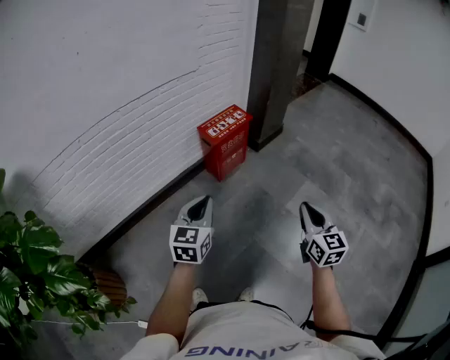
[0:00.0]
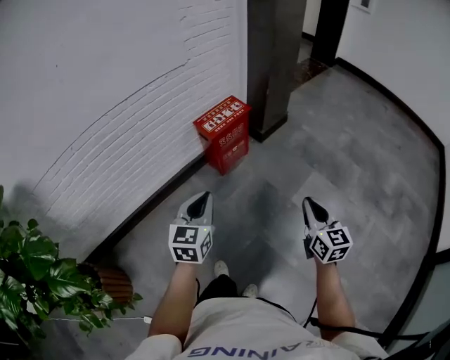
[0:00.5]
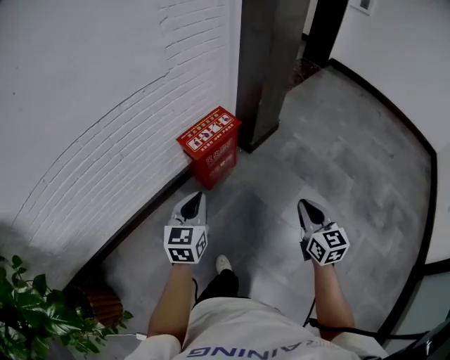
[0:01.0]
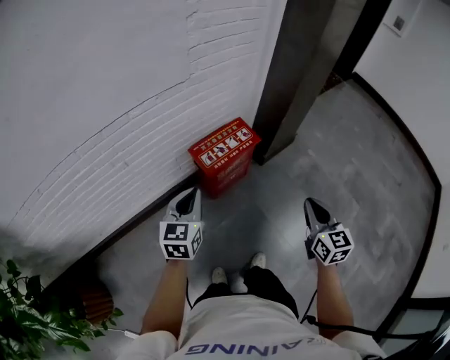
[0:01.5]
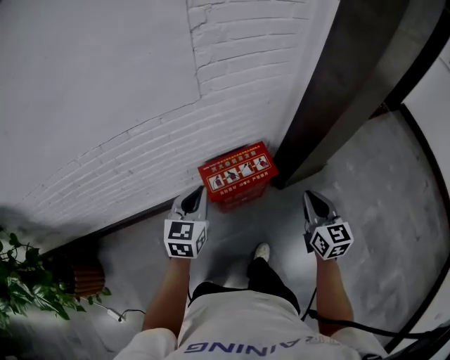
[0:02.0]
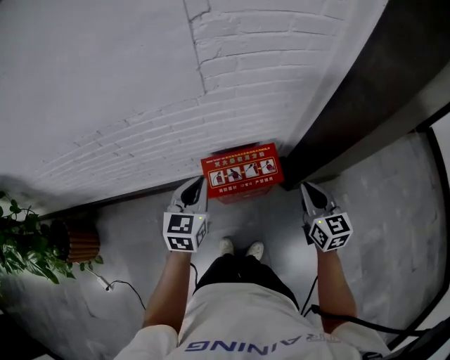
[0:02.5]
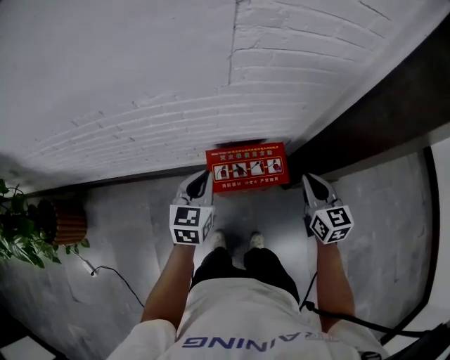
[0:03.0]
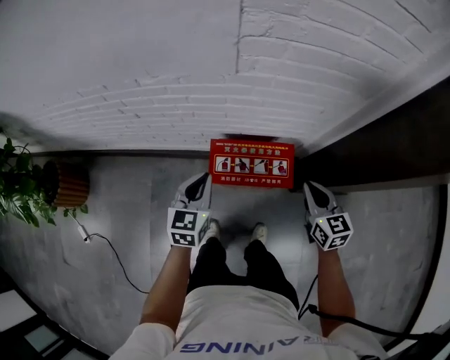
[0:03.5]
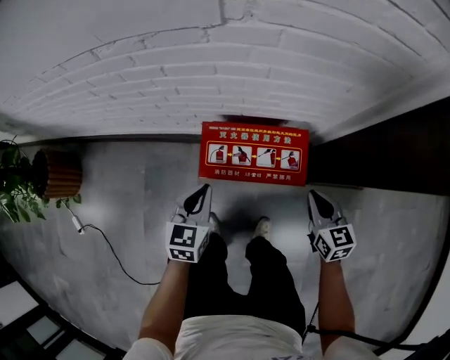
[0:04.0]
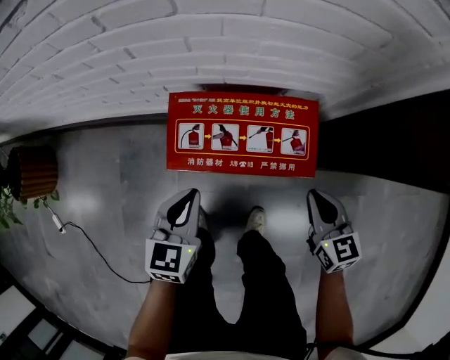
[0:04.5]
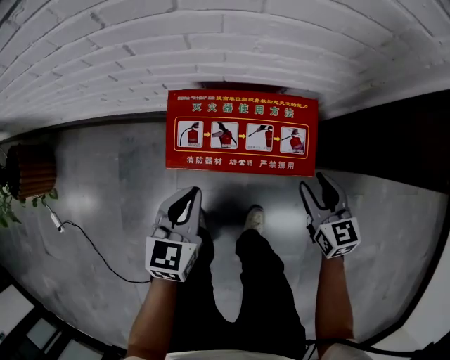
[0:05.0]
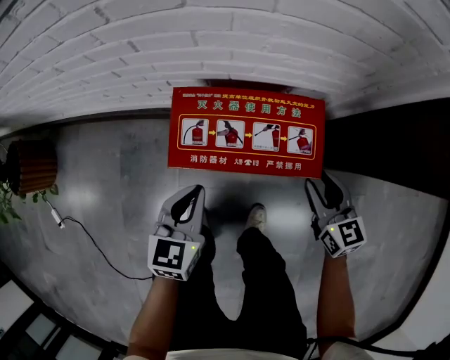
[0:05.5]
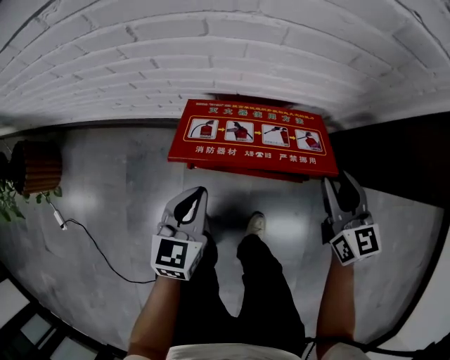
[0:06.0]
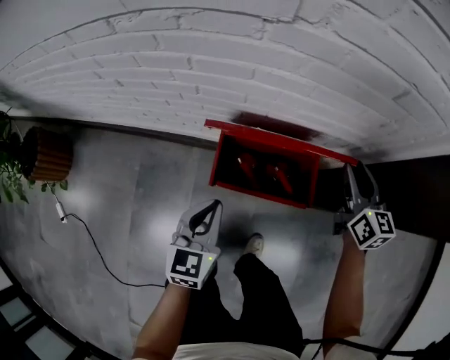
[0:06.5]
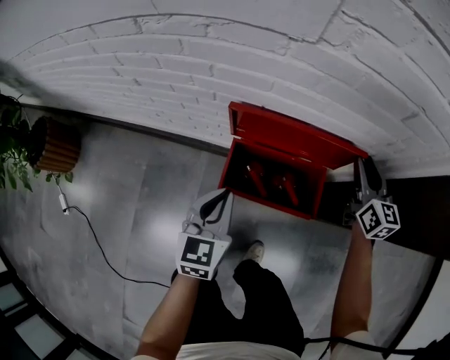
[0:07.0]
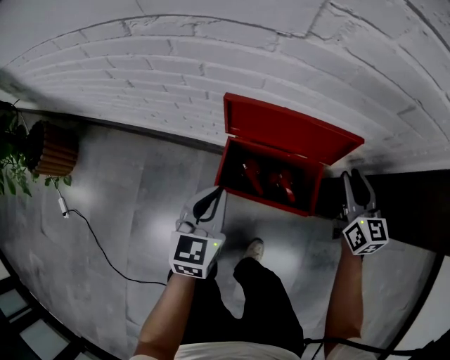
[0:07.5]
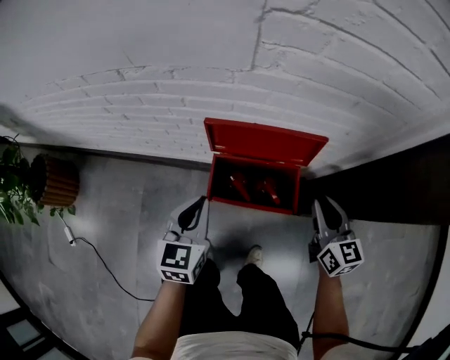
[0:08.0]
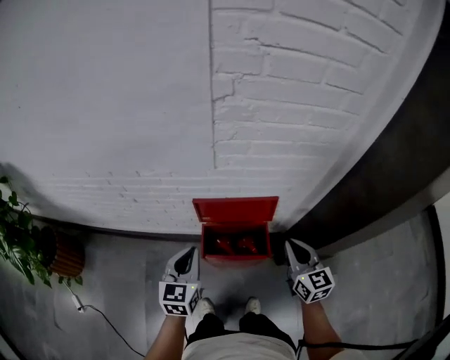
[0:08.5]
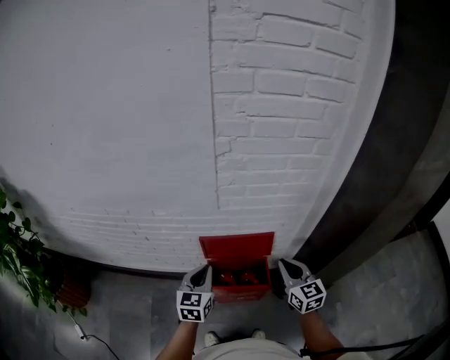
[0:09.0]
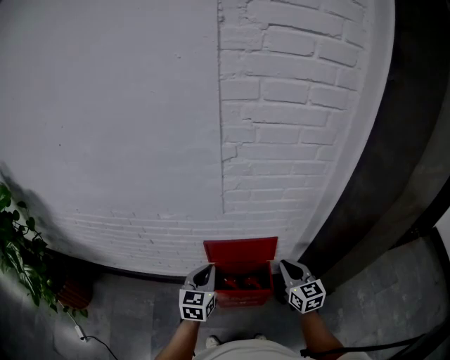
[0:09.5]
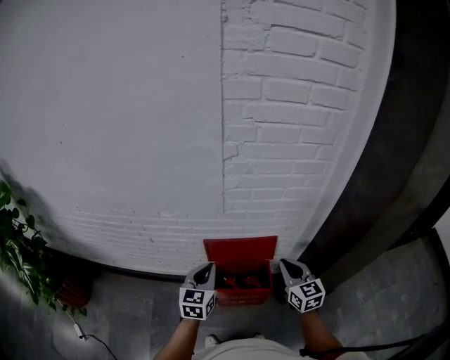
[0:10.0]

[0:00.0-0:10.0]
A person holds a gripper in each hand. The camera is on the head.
0:00.0 to 0:02.0: The two grippers travel together, forward, approximately 60 cm. The left gripper changes its angle by some 20 degrees, while the right gripper changes its angle by about 20 degrees.
0:02.0 to 0:04.0: Both grippers travel together downward, approximately 25 cm. The left gripper swivels approximately 30 degrees. Meanwhile the right gripper rotates roughly 30 degrees.
0:04.0 to 0:06.0: The right gripper goes downward and returns, roughly 10 cm each way, and opens. The left gripper moves downward, some 5 cm.
0:06.0 to 0:08.0: The grippers both shift upward by about 10 cm. The right gripper goes forward and returns, about 15 cm each way.
0:08.0 to 0:10.0: The two grippers go about 20 cm upward.

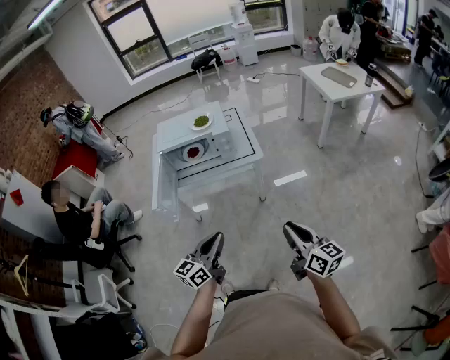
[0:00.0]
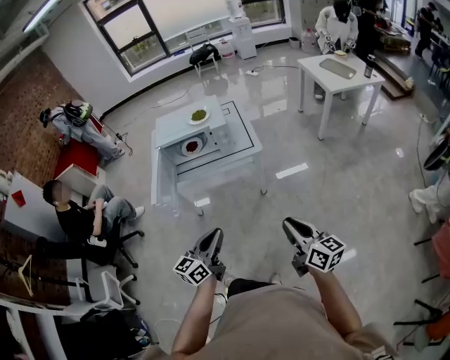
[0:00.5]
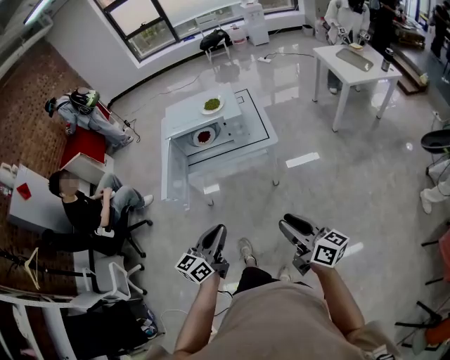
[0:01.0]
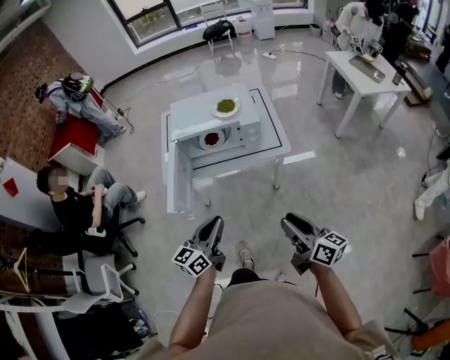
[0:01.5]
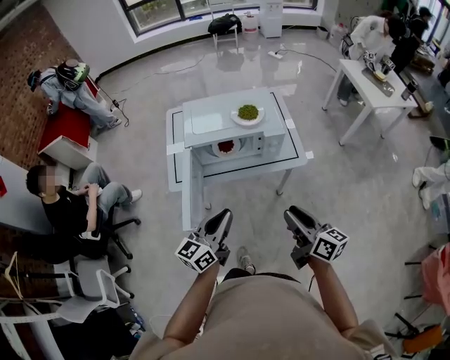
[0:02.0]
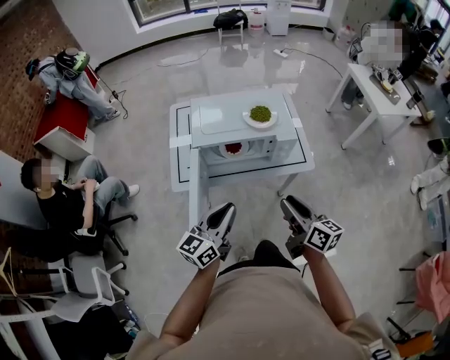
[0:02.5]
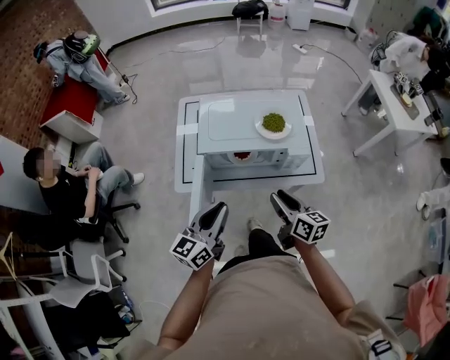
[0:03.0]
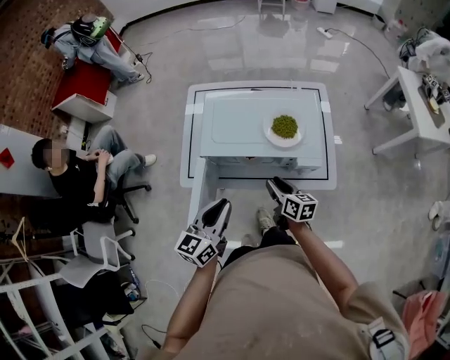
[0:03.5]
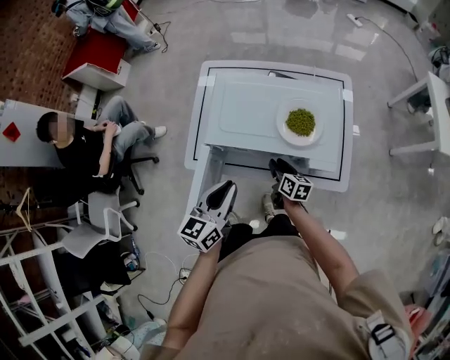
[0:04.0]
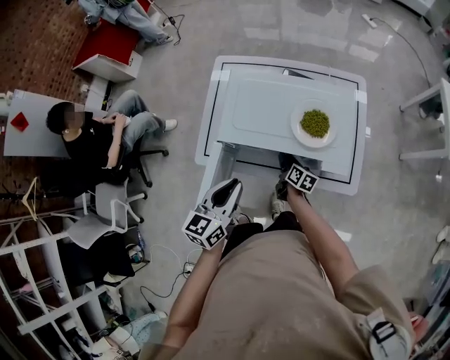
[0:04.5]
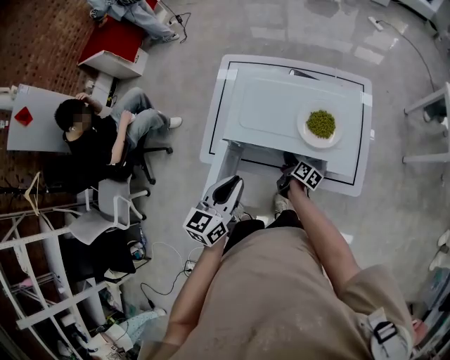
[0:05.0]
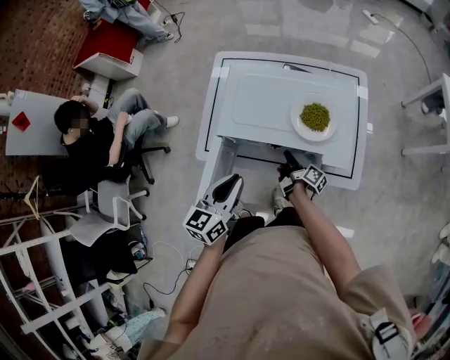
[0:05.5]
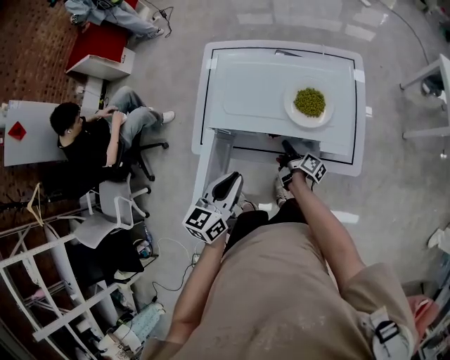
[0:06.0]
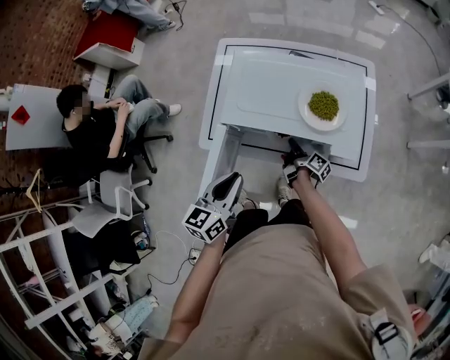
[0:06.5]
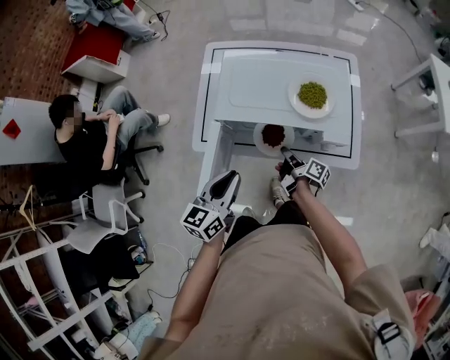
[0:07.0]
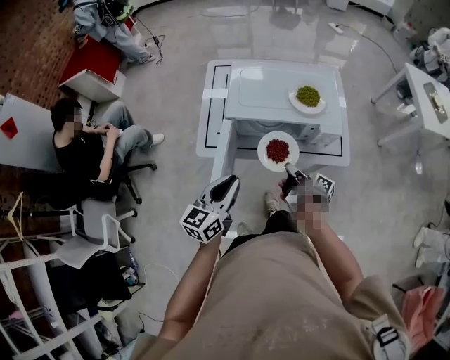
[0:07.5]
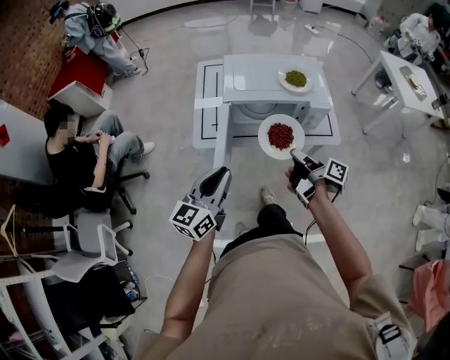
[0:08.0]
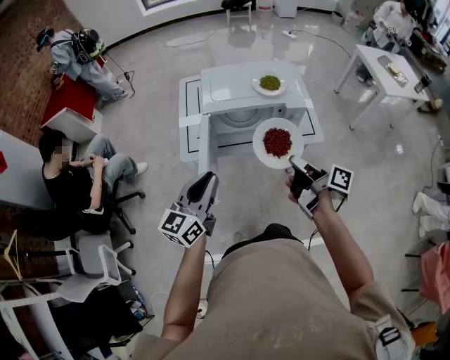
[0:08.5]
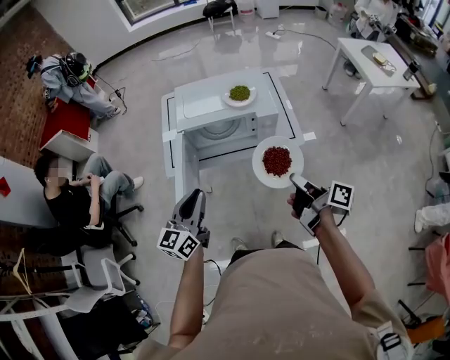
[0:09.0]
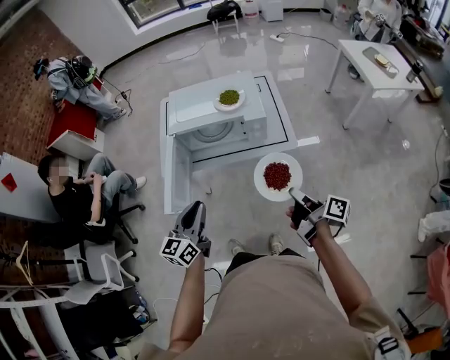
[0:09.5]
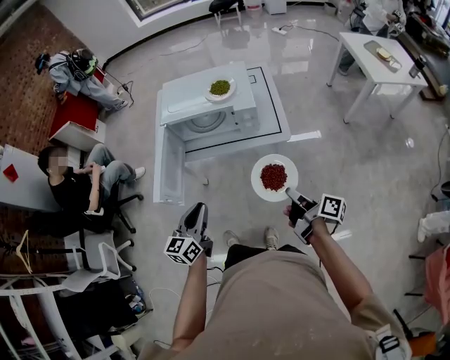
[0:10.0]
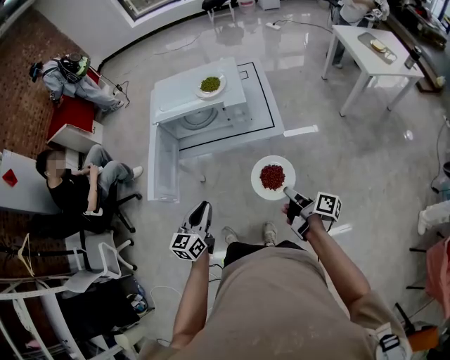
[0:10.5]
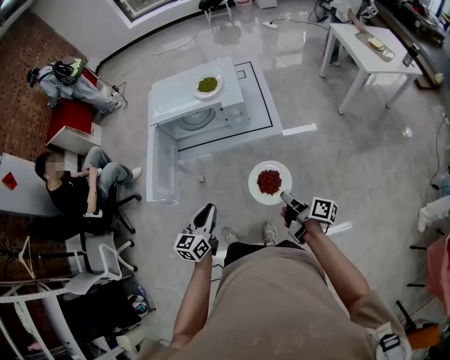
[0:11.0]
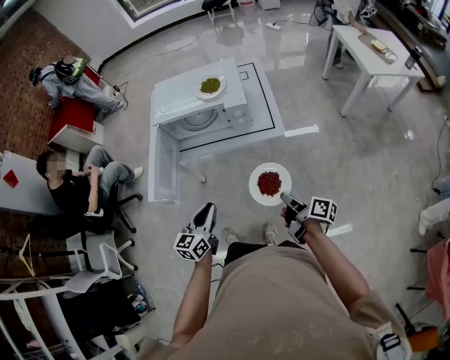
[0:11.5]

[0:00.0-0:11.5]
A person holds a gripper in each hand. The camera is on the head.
0:00.0 to 0:02.0: The grippers both shift forward and to the left by about 35 cm.
0:02.0 to 0:04.0: The left gripper heads forward, covering about 25 cm, and swivels some 30 degrees; the right gripper moves forward and downward, roughly 50 cm, and turns by some 20 degrees.
0:04.0 to 0:06.0: The right gripper changes its angle by about 40 degrees, and closes.
0:06.0 to 0:07.5: The left gripper shifts some 15 cm backward and to the left. Meanwhile the right gripper travels backward and upward by some 20 cm.
0:07.5 to 0:09.5: The right gripper moves to the right, backward and upward, approximately 35 cm. Meanwhile the left gripper shifts roughly 20 cm backward and to the right.
0:09.5 to 0:11.5: The right gripper shifts roughly 10 cm downward and backward; the left gripper shifts roughly 15 cm downward, to the right and backward.

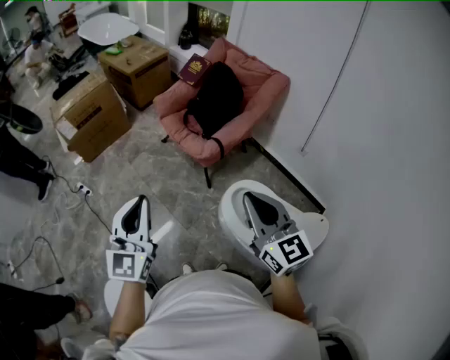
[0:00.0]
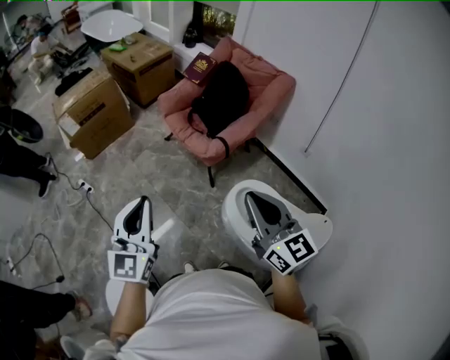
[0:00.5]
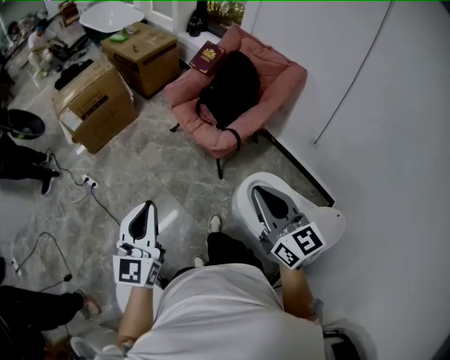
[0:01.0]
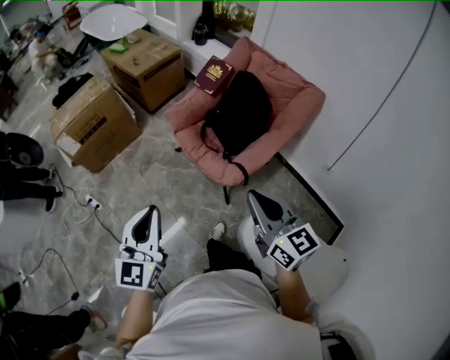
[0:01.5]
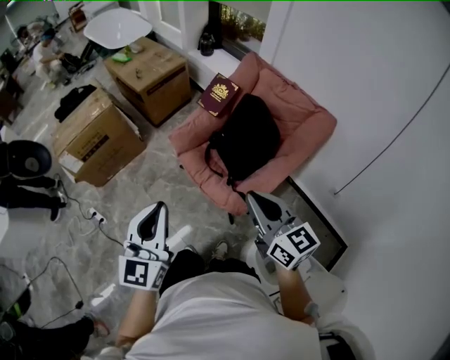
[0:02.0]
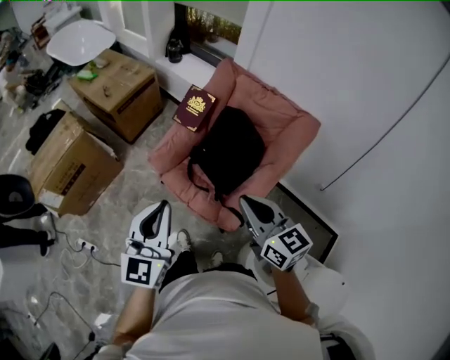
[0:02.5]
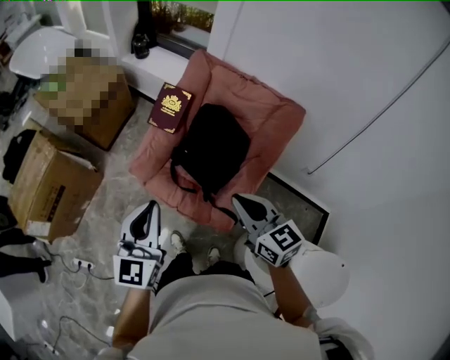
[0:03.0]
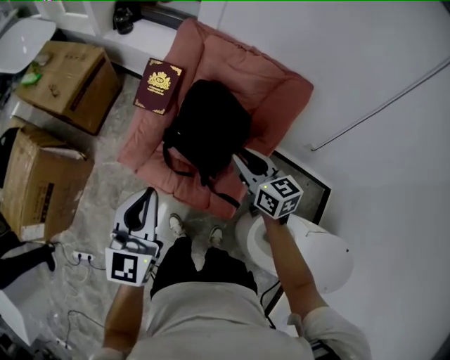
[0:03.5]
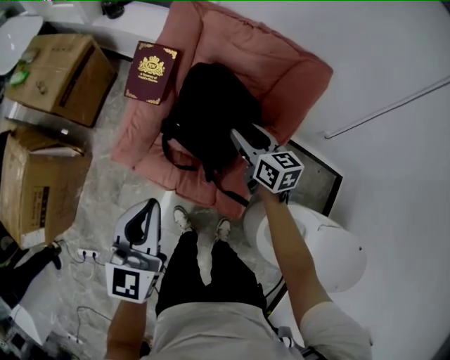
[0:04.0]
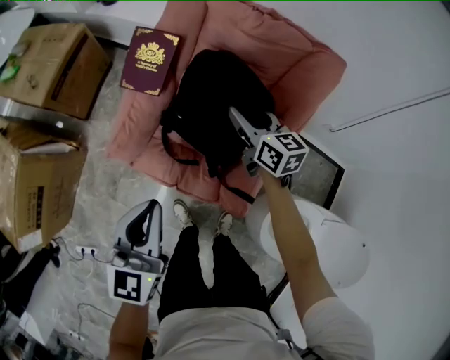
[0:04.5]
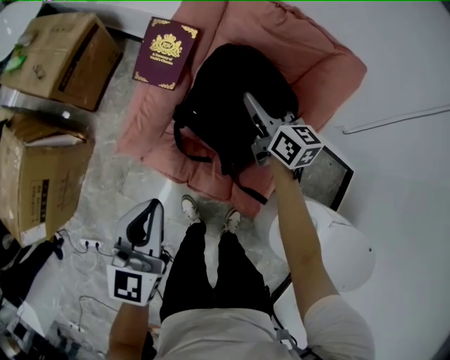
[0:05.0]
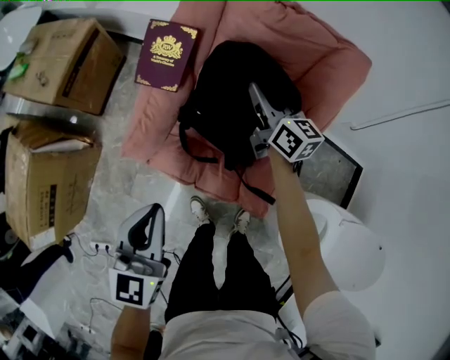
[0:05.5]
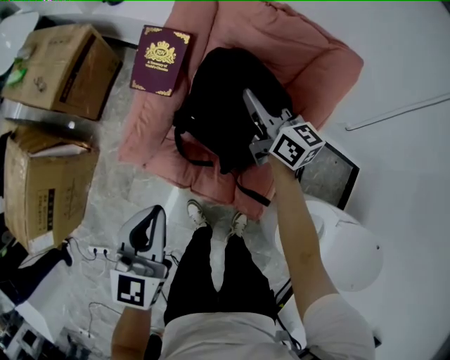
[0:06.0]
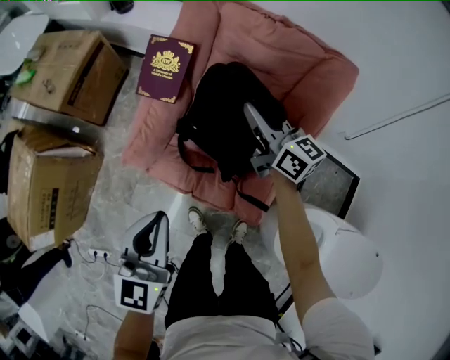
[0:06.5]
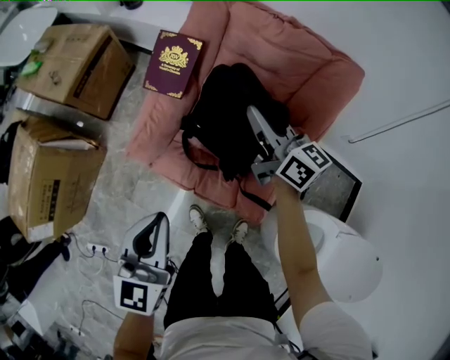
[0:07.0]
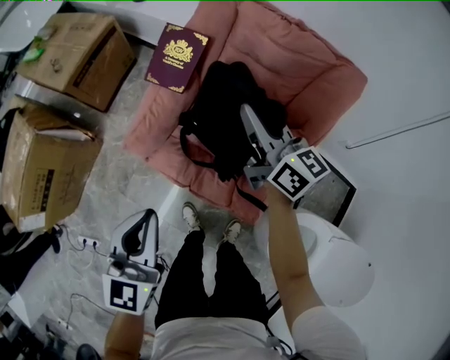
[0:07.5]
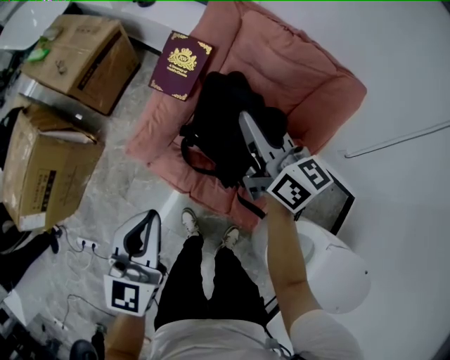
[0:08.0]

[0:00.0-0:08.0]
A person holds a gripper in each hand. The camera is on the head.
0:00.0 to 0:02.0: The two grippers go roughly 40 cm forward.
0:02.0 to 0:04.0: The left gripper changes place by approximately 30 cm, and rotates roughly 30 degrees. The right gripper changes place by roughly 40 cm, turns by approximately 40 degrees, and opens up.
0:04.0 to 0:06.0: The left gripper shifts some 5 cm downward. Meanwhile the right gripper shifts roughly 10 cm forward, and closes its fingers.
0:06.0 to 0:08.0: The right gripper heads upward, to the left and backward, covering about 15 cm.
